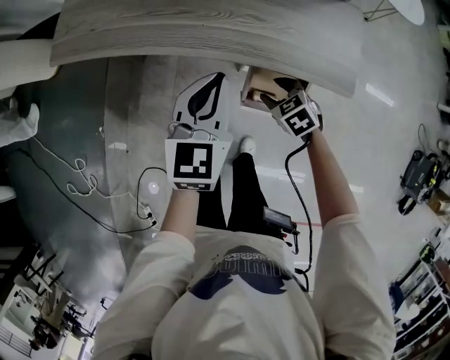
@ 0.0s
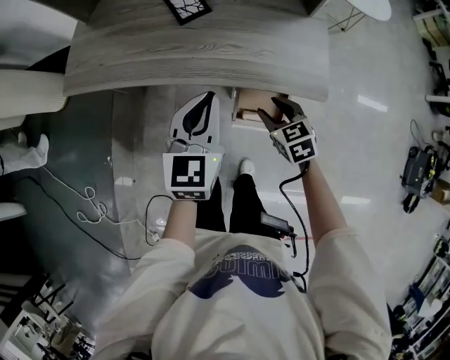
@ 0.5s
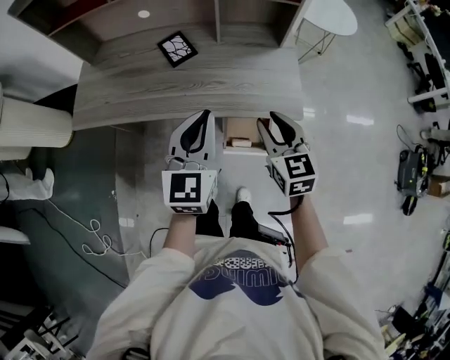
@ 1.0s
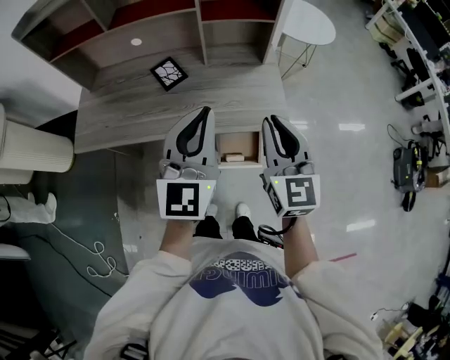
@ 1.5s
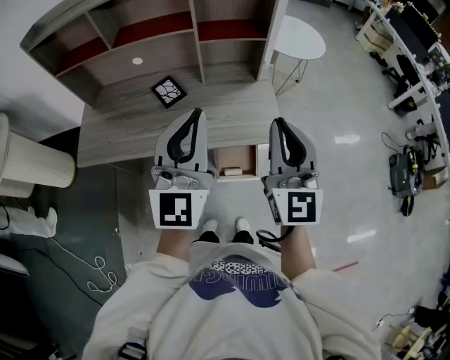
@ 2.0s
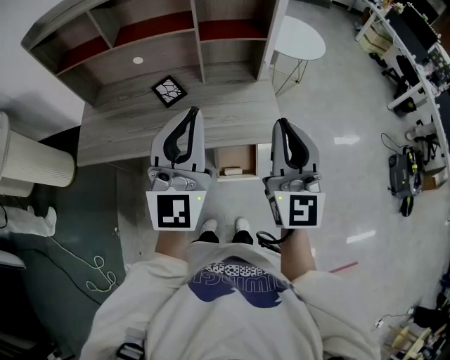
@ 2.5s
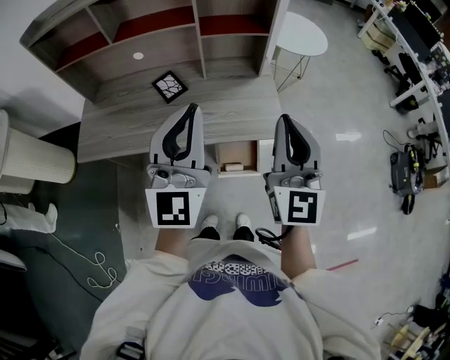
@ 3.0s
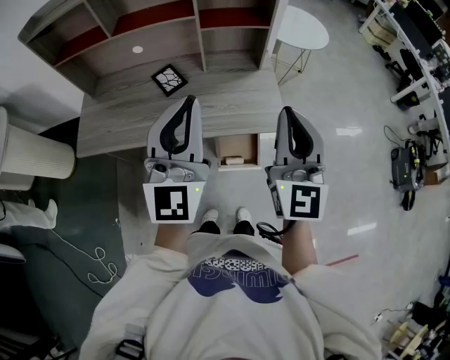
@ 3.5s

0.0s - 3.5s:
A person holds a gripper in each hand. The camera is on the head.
0.0s - 2.0s: The right gripper goes some 50 cm upward, angles its fingers upward, by approximately 70 degrees, and closes its fingers; the left gripper is displaced upward by approximately 35 cm, and tips its fingers upward by roughly 40 degrees.
2.0s - 3.5s: The grippers move only a little.

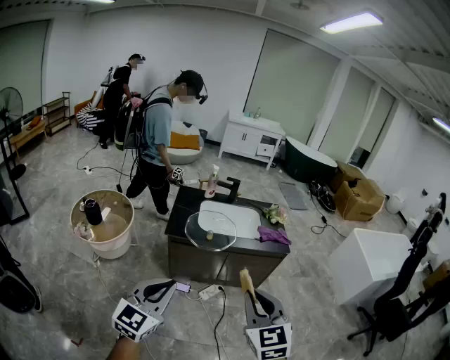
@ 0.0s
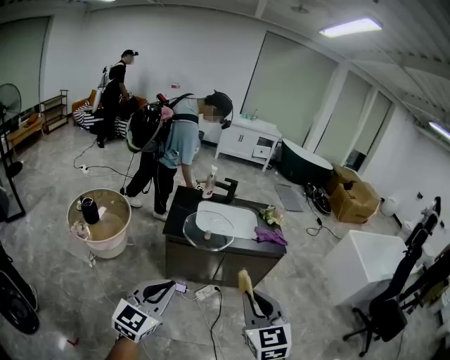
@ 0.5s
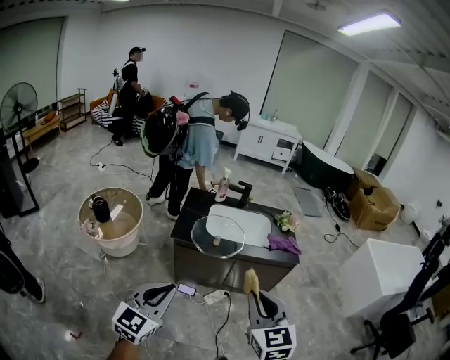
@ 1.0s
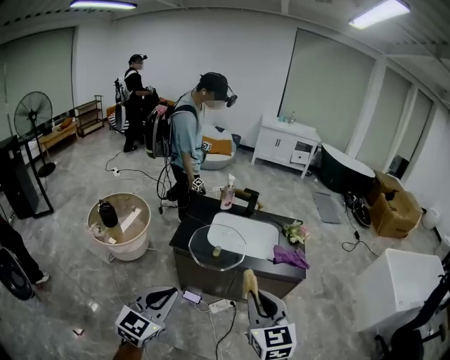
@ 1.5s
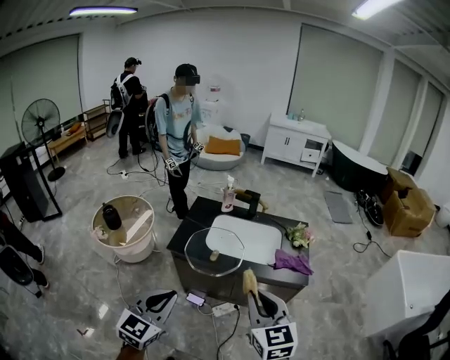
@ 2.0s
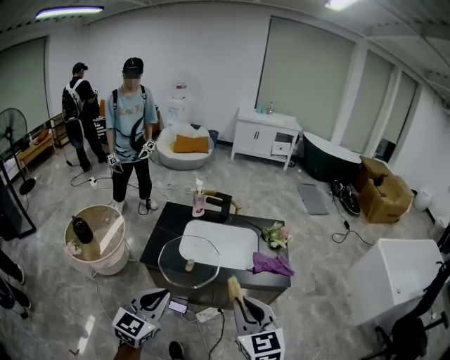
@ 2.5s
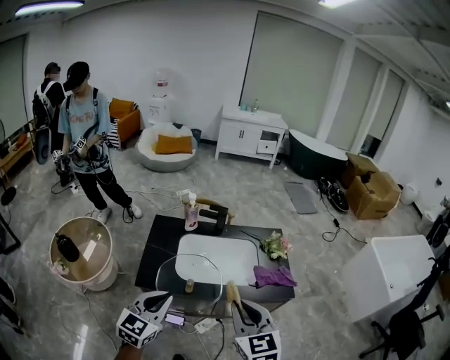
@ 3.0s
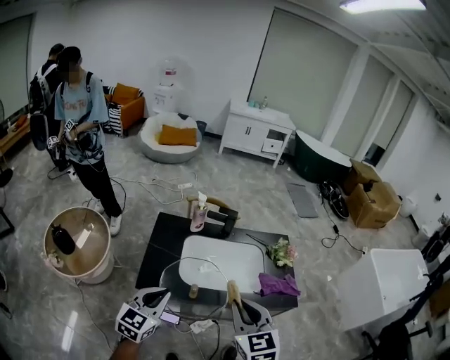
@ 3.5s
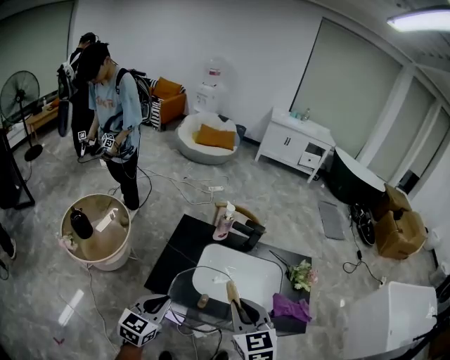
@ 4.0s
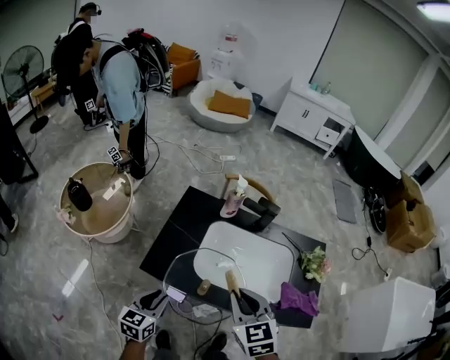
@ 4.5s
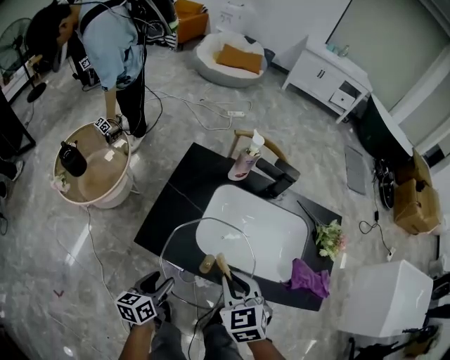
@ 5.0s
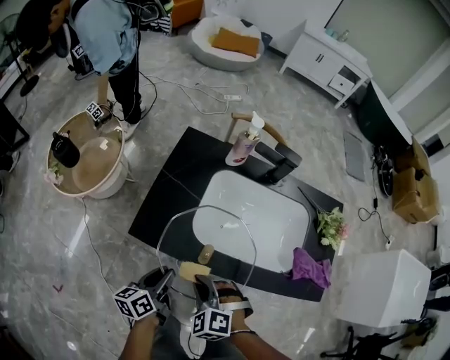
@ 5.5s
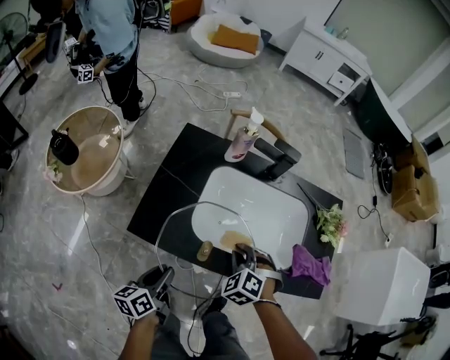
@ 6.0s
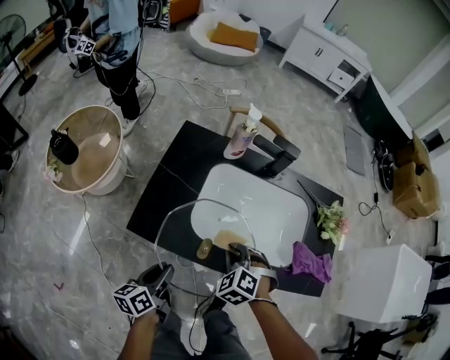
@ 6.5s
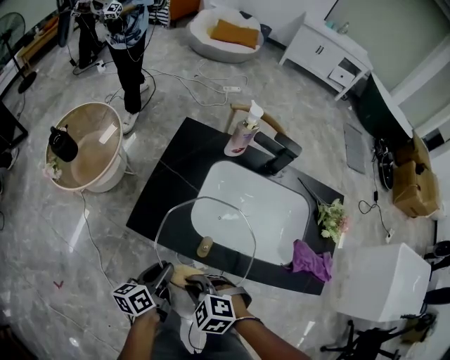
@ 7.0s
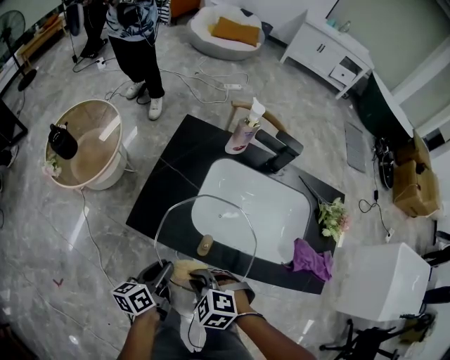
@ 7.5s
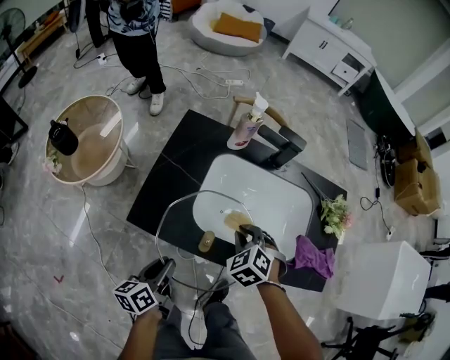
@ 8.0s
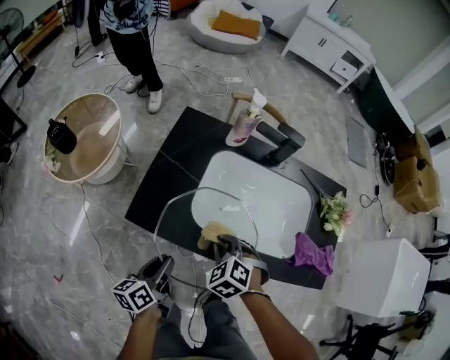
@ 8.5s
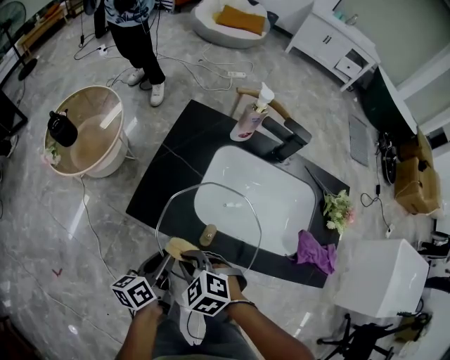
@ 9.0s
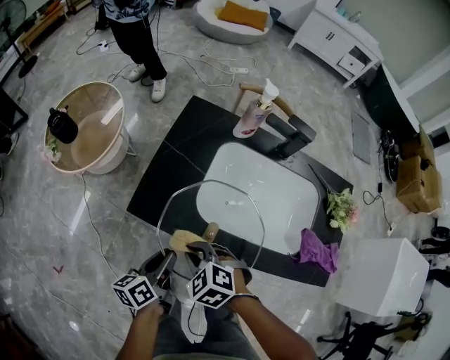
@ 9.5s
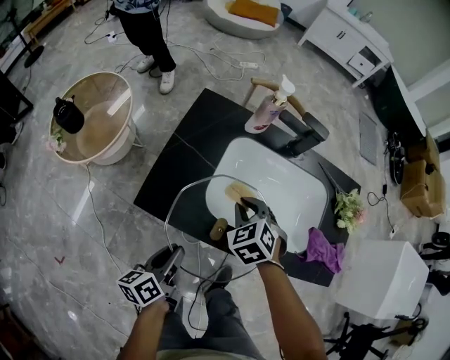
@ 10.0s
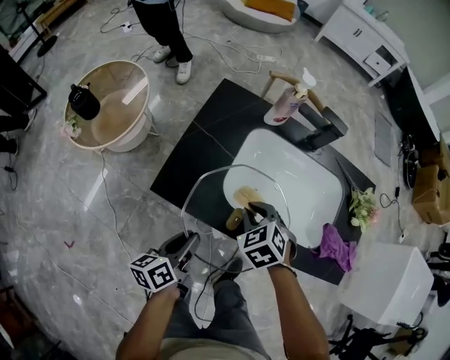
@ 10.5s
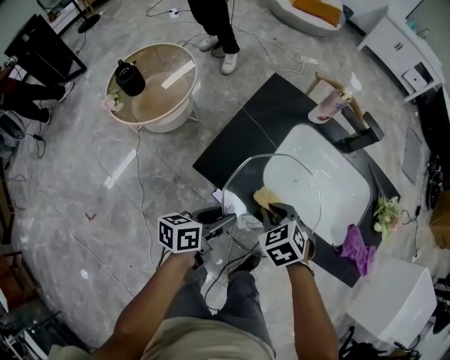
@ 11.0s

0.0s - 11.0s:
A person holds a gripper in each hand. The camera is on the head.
0.0s - 2.0s: Both grippers move forward and to the right, roughly 20 cm.
2.0s - 3.5s: The right gripper goes some 25 cm forward and to the left. Meanwhile the left gripper heads forward, covering some 30 cm.
3.5s - 5.5s: The grippers both shift downward by some 30 cm. The left gripper rolls counterclockwise, seen from behind, by some 60 degrees, and opens; the right gripper turns by about 60 degrees.
5.5s - 7.5s: The right gripper swivels approximately 20 degrees.
9.0s - 11.0s: The right gripper shifts roughly 10 cm to the right and forward.

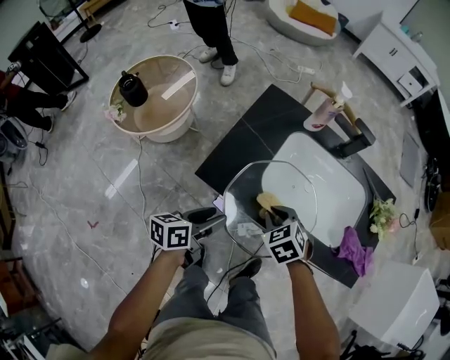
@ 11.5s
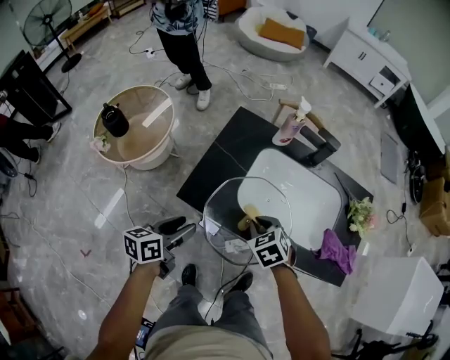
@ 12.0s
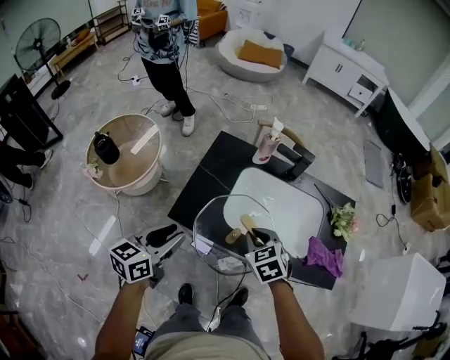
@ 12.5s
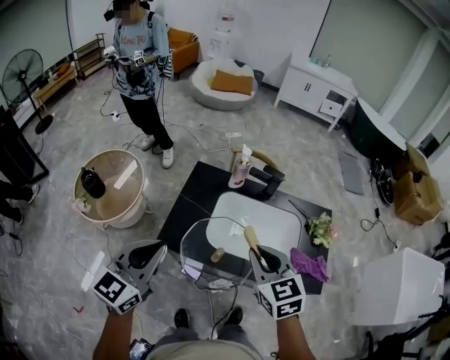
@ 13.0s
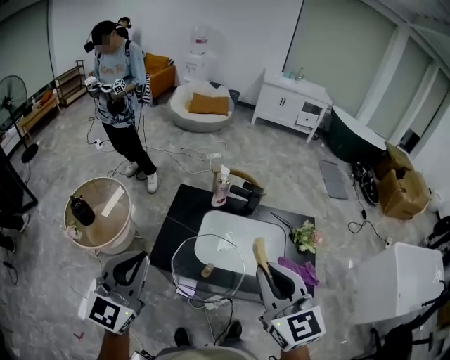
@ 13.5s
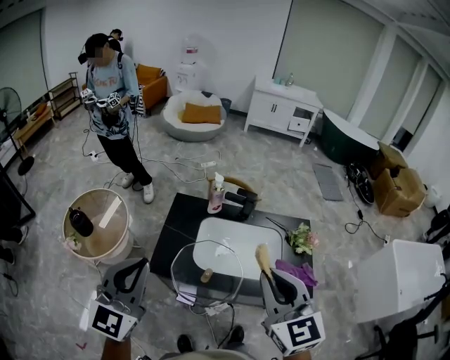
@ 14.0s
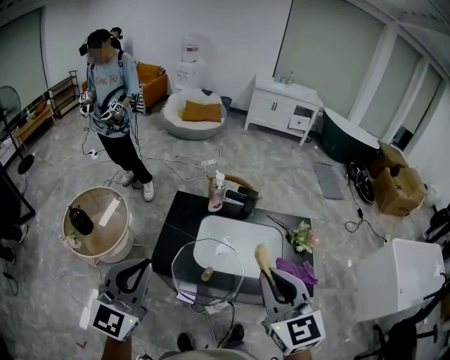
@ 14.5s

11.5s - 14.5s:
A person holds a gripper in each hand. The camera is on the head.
11.5s - 13.0s: Both grippers travel together upward, some 30 cm. The right gripper points its fingers approximately 30 degrees further upward, while the left gripper twists approximately 50 degrees clockwise, seen from behind, and closes up.
13.0s - 14.5s: The left gripper is displaced upward by some 5 cm. Meanwhile the right gripper shifts about 15 cm upward and backward.

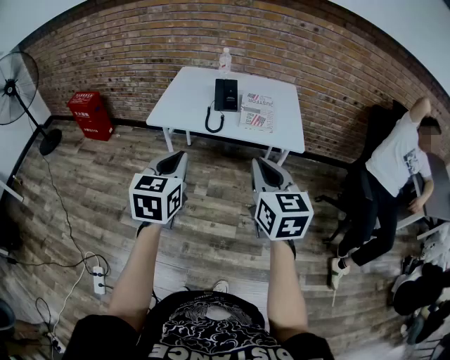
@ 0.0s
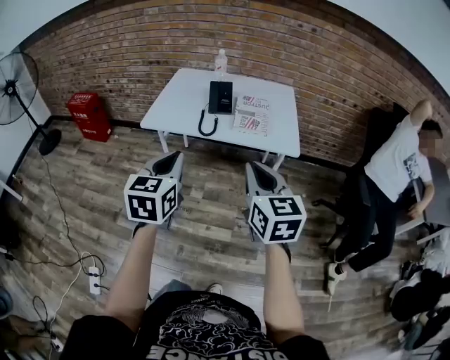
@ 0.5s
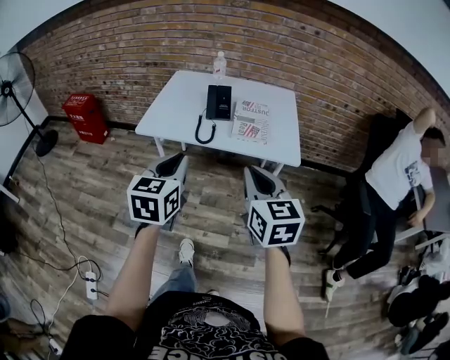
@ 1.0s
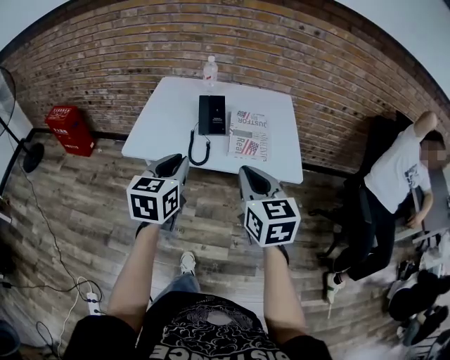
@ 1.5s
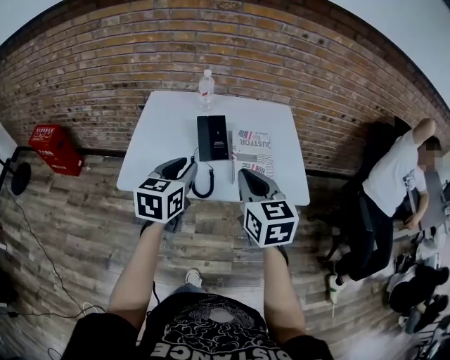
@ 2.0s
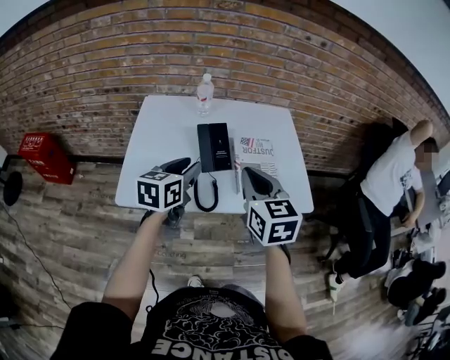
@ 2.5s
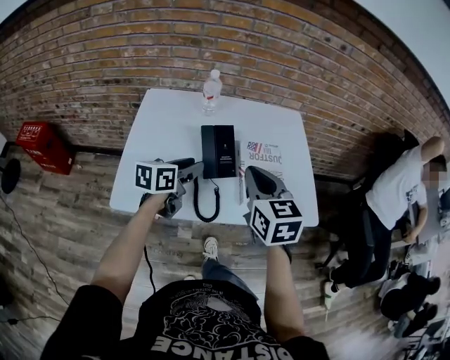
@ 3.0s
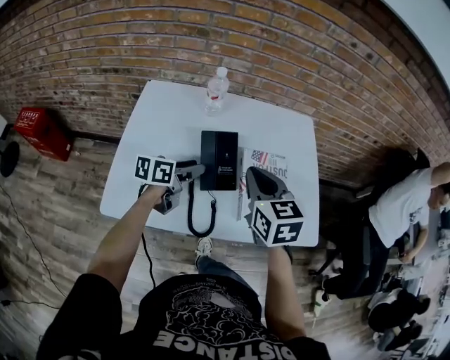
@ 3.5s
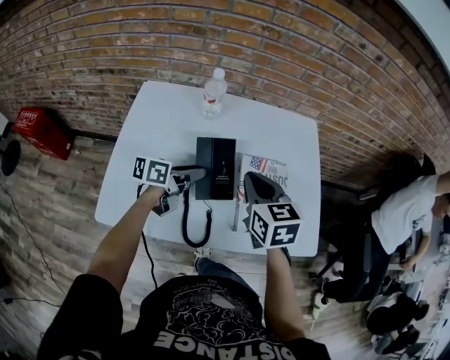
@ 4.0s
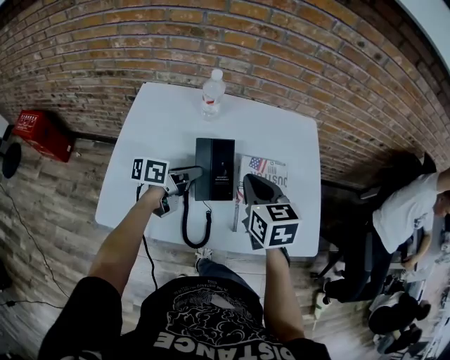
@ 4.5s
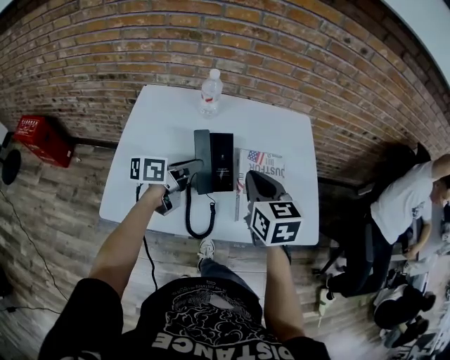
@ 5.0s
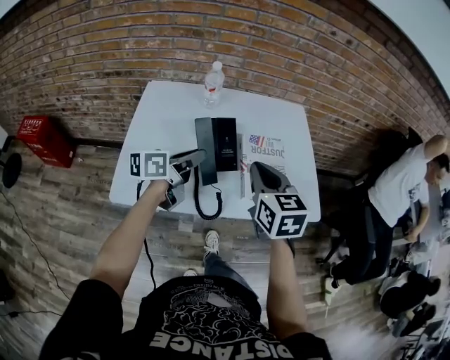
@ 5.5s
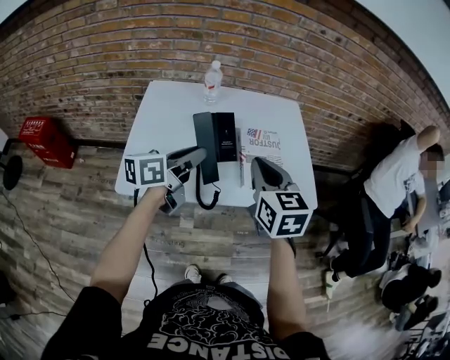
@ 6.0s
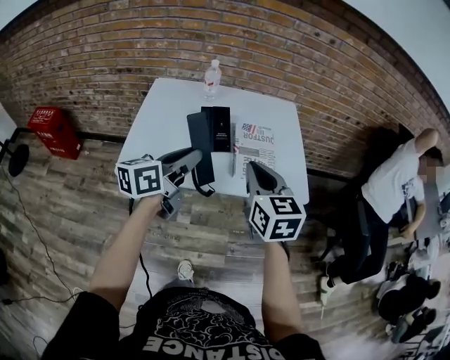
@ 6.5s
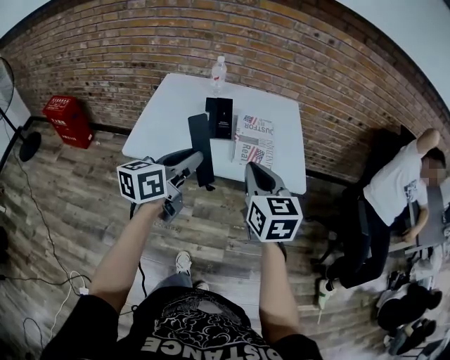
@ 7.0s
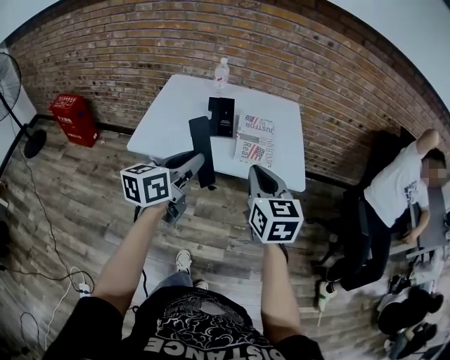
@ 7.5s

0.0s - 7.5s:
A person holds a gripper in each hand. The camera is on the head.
0.0s - 2.0s: The two grippers go roughly 35 cm forward.
2.0s - 4.0s: The two grippers go some 25 cm forward and downward. The left gripper changes its angle by about 50 degrees.
4.0s - 5.5s: The right gripper goes about 10 cm backward. The left gripper shifts approximately 15 cm upward and backward, and closes.
5.5s - 7.5s: The left gripper heads backward and upward, covering approximately 30 cm, and rotates some 30 degrees, while the right gripper heads backward and to the right, covering about 25 cm.

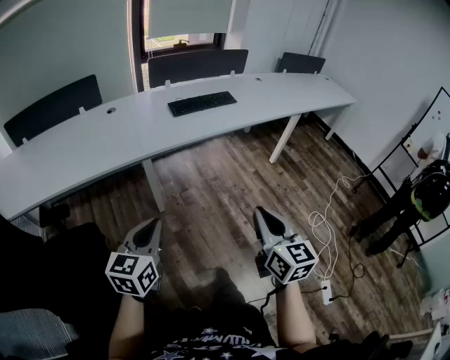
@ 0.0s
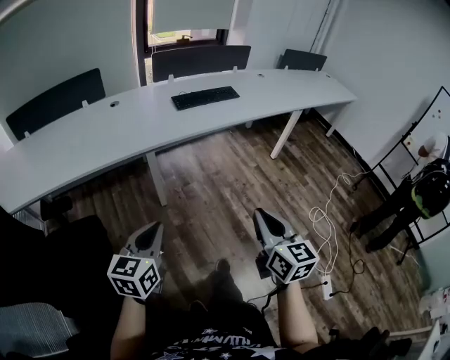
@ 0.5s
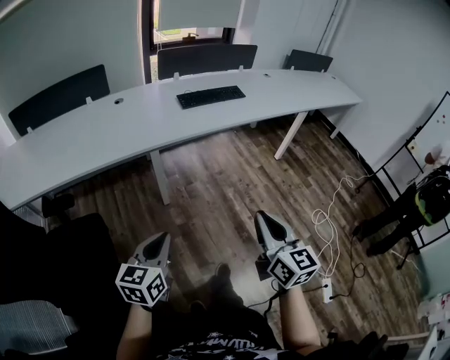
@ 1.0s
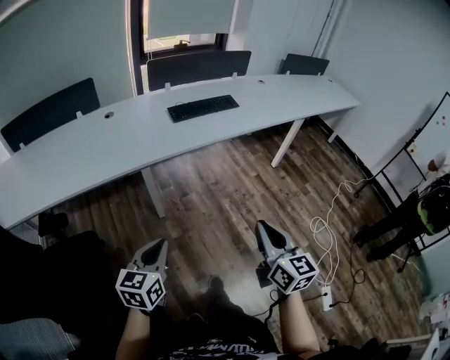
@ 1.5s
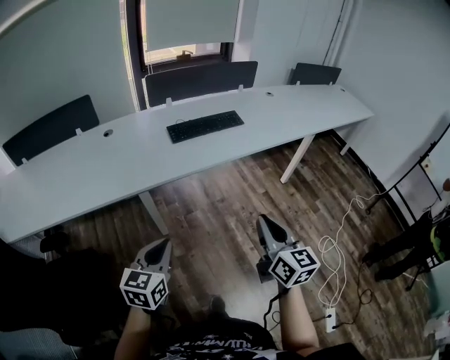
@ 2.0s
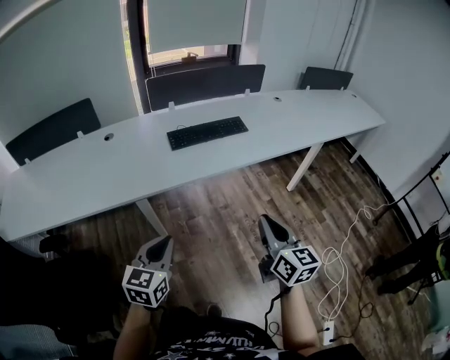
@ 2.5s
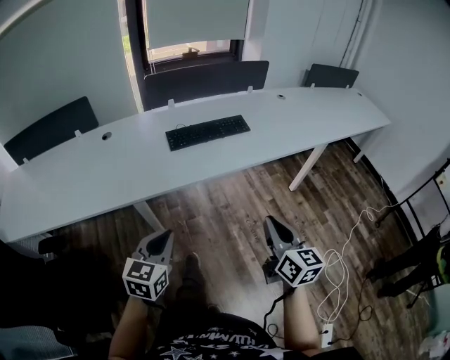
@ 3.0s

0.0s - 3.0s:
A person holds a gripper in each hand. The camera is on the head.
0.0s - 1.5s: The left gripper heads downward, covering some 5 cm.
1.5s - 3.0s: Both grippers travel together forward and to the right, approximately 25 cm.
